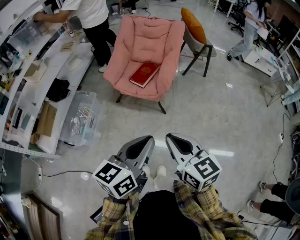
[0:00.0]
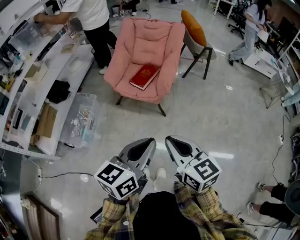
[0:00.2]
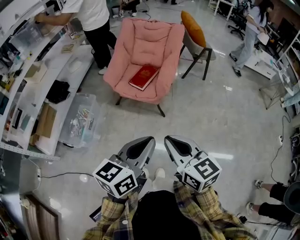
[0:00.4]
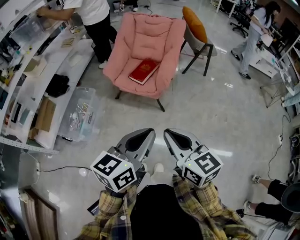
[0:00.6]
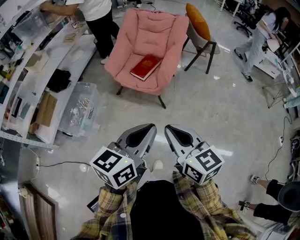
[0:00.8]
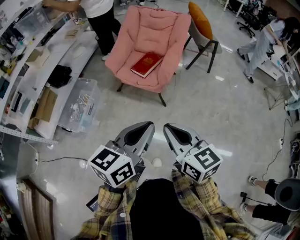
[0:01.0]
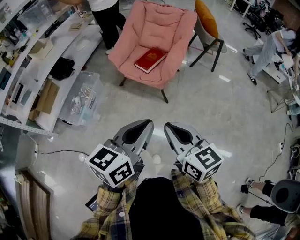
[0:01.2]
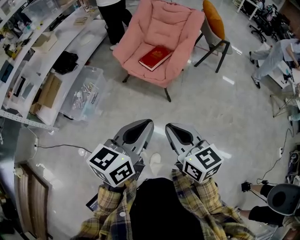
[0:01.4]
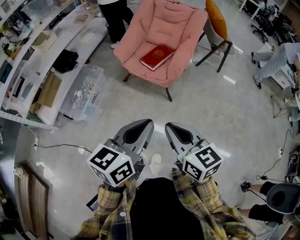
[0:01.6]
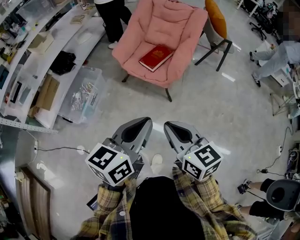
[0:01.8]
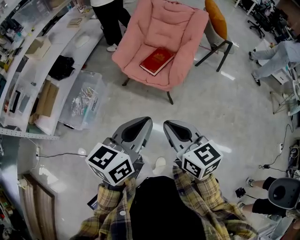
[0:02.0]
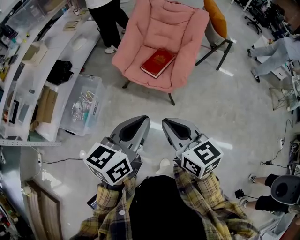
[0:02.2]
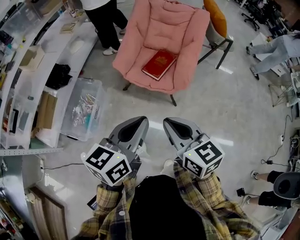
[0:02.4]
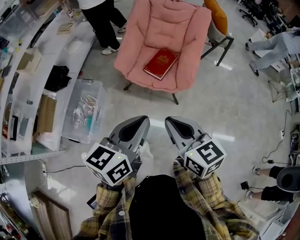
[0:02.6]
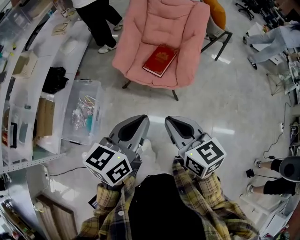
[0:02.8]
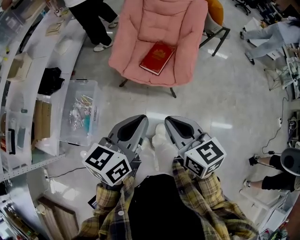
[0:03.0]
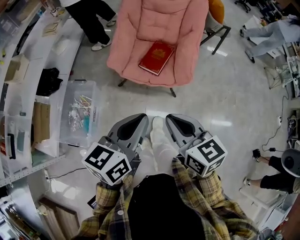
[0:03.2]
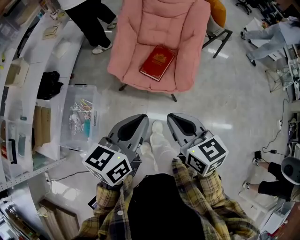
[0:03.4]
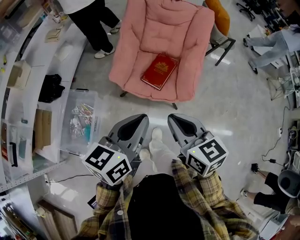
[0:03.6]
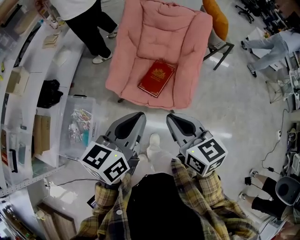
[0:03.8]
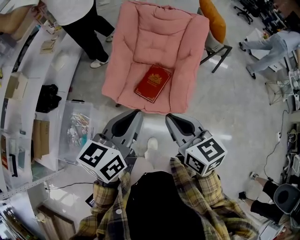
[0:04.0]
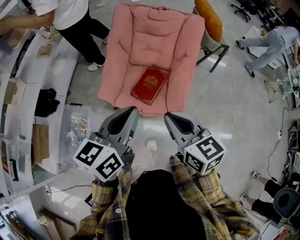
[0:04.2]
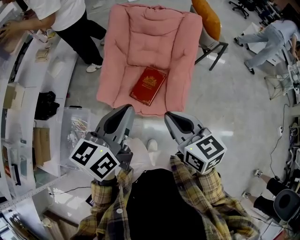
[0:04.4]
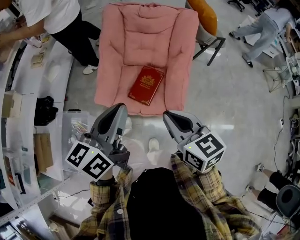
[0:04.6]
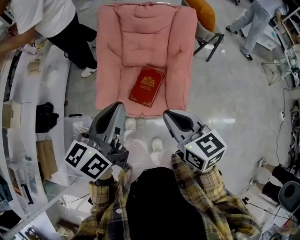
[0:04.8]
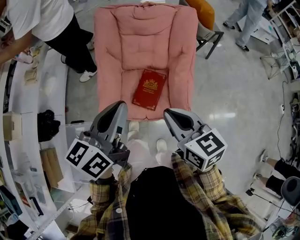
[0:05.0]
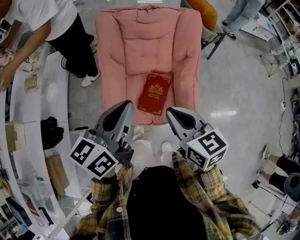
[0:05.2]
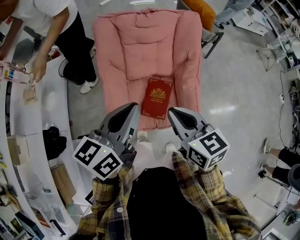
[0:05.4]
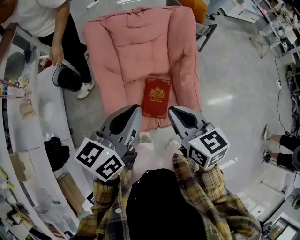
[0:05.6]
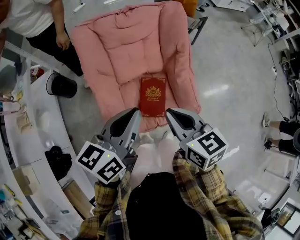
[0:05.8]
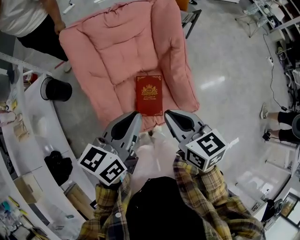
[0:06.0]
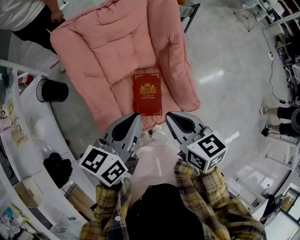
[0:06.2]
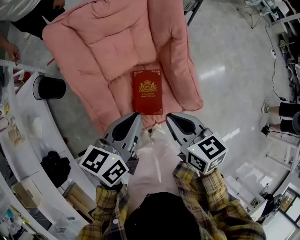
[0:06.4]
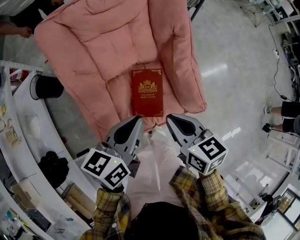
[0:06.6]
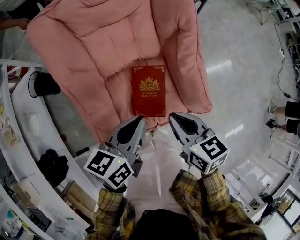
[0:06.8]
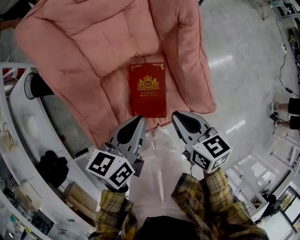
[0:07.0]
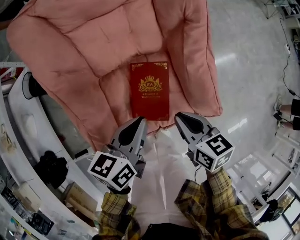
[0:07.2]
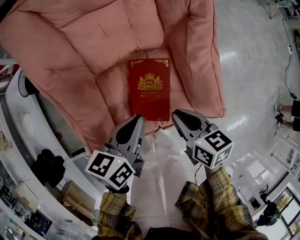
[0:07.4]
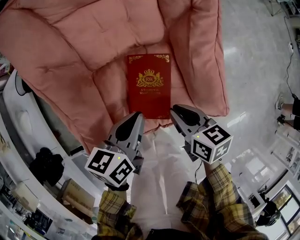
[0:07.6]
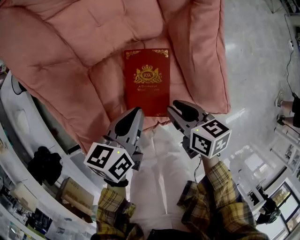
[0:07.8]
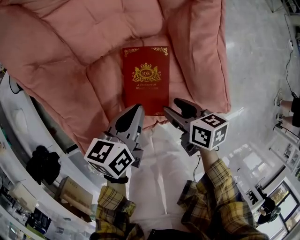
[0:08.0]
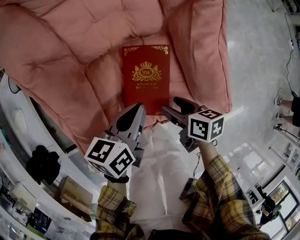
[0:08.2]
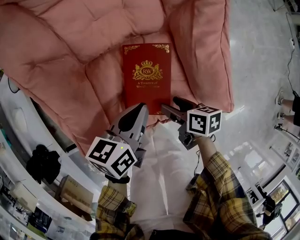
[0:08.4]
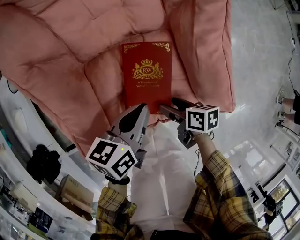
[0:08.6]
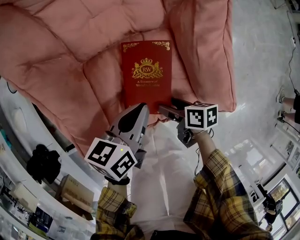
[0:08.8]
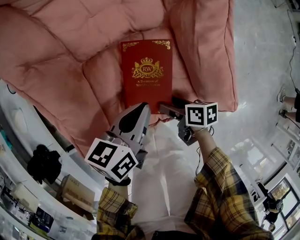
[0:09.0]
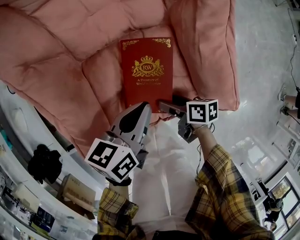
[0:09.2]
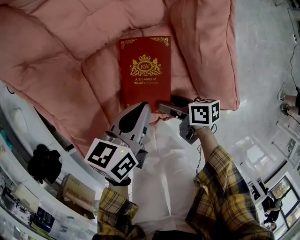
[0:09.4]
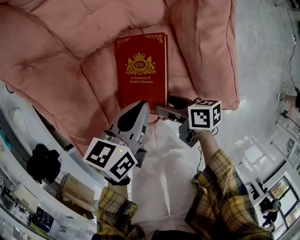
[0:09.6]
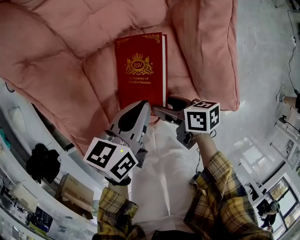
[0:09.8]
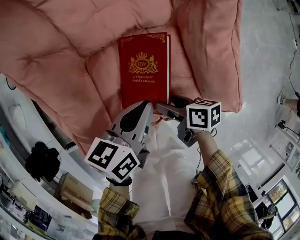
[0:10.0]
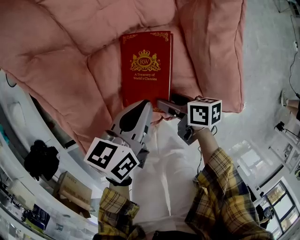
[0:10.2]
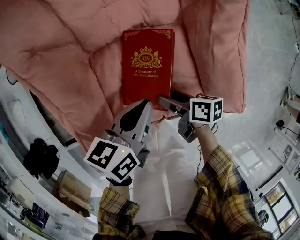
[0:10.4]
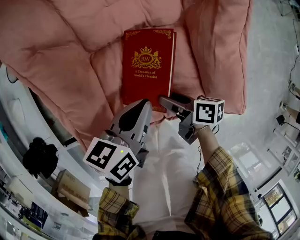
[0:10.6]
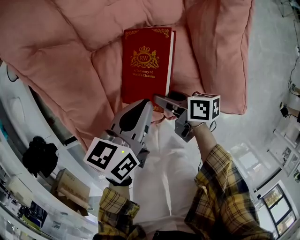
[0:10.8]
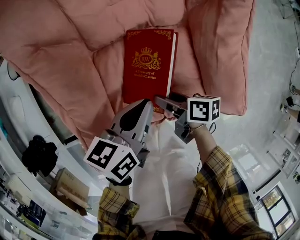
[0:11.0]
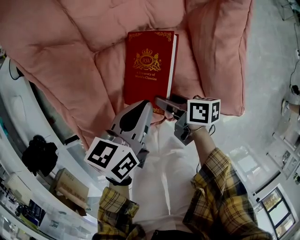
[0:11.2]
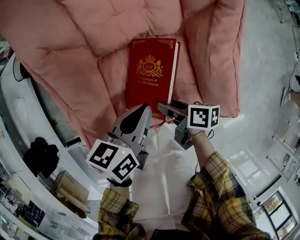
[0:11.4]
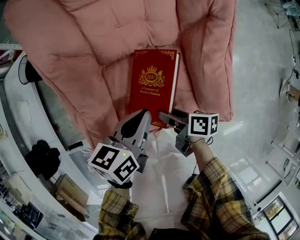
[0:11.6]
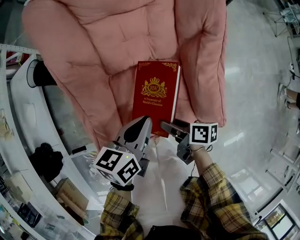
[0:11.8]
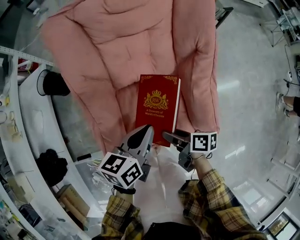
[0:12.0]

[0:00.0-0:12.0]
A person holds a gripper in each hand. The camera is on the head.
0:00.0 to 0:01.6: The grippers move only a little.
0:01.6 to 0:03.0: Both grippers move forward and to the left, approximately 30 cm.
0:03.0 to 0:04.4: The grippers both shift forward by roughly 25 cm.
0:04.4 to 0:06.0: The right gripper shifts by roughly 25 cm, and turns by approximately 30 degrees; the left gripper moves approximately 25 cm, and swivels roughly 30 degrees.
0:06.0 to 0:07.6: Both grippers move downward, some 35 cm. The right gripper rotates approximately 20 degrees.
0:07.6 to 0:09.0: The right gripper shifts approximately 15 cm downward, turns by about 30 degrees, and opens its fingers. Meanwhile the left gripper changes place by approximately 5 cm.
0:09.0 to 0:10.4: There are only small adjustments of the grippers.
0:10.4 to 0:12.0: The grippers both shift upward by about 15 cm.

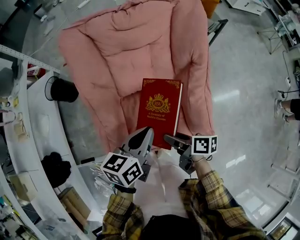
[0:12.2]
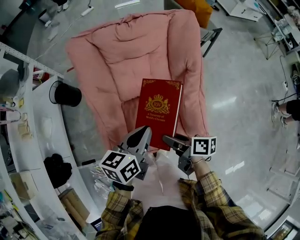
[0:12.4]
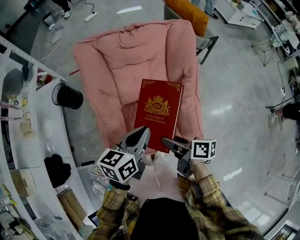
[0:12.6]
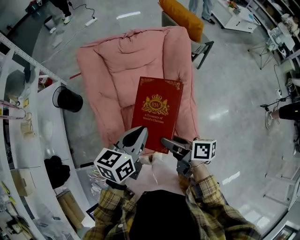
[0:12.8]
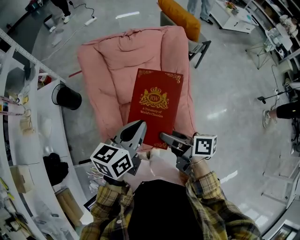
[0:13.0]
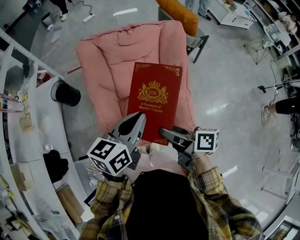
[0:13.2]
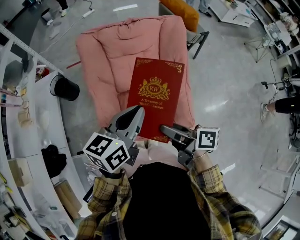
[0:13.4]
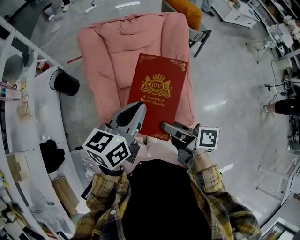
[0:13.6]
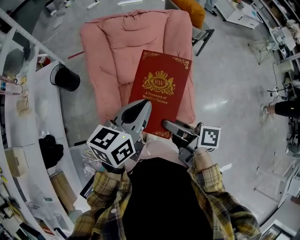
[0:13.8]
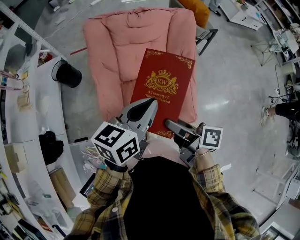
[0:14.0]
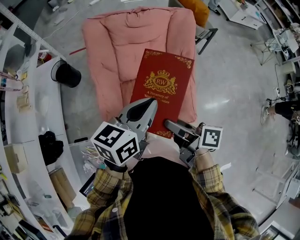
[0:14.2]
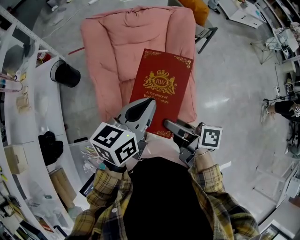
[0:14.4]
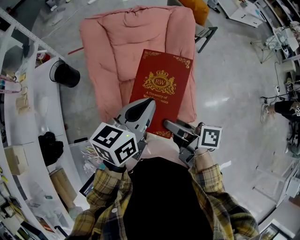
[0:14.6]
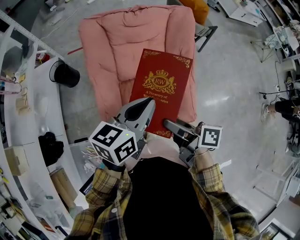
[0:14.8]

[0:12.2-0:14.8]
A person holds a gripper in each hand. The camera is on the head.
0:12.2 to 0:13.4: Both grippers travel together upward, roughly 25 cm.
0:13.4 to 0:14.8: The grippers make only small movements.

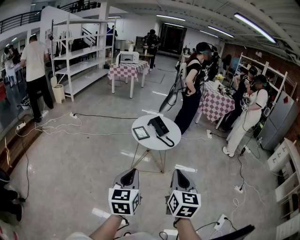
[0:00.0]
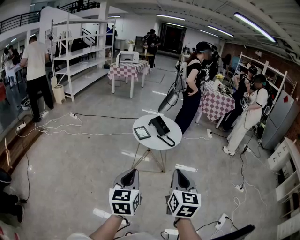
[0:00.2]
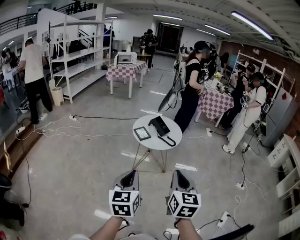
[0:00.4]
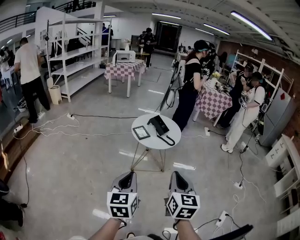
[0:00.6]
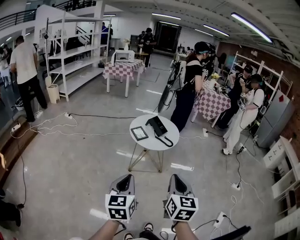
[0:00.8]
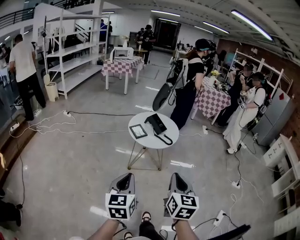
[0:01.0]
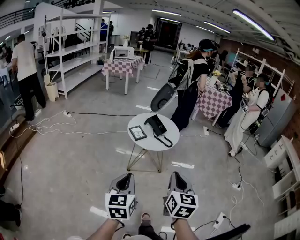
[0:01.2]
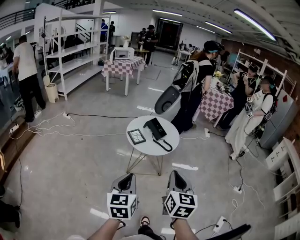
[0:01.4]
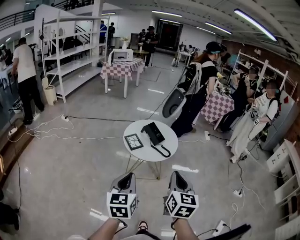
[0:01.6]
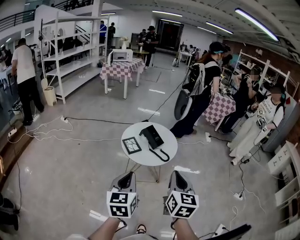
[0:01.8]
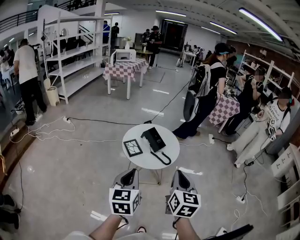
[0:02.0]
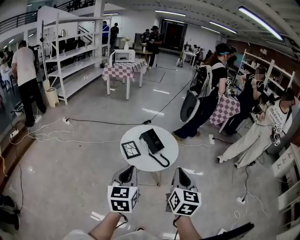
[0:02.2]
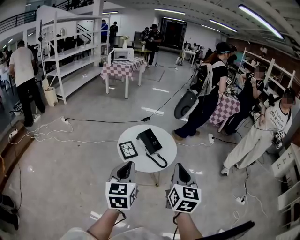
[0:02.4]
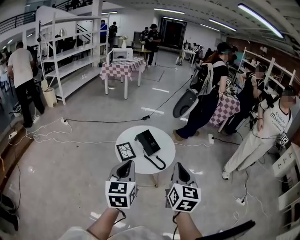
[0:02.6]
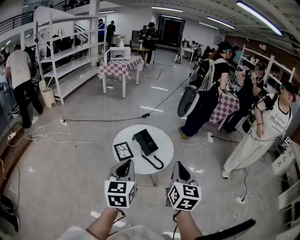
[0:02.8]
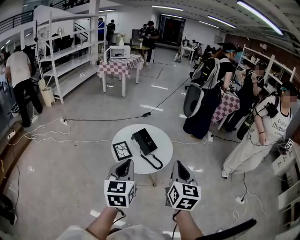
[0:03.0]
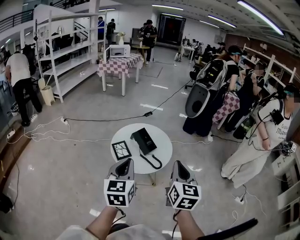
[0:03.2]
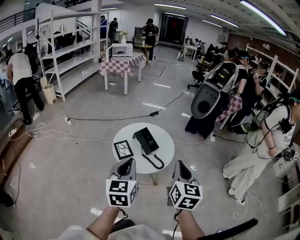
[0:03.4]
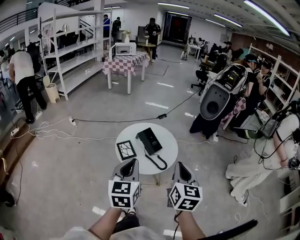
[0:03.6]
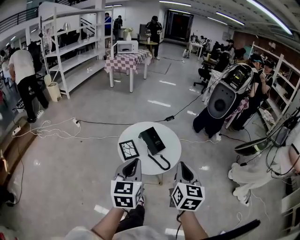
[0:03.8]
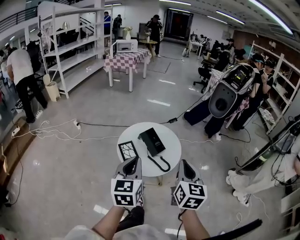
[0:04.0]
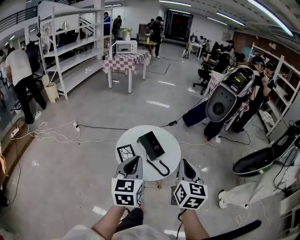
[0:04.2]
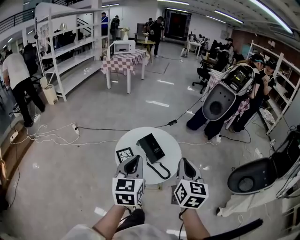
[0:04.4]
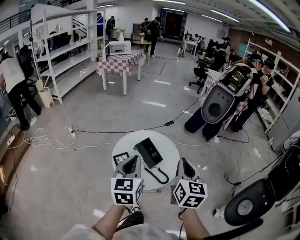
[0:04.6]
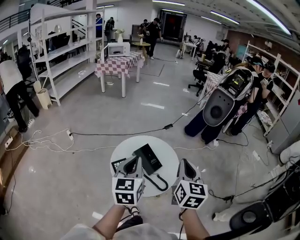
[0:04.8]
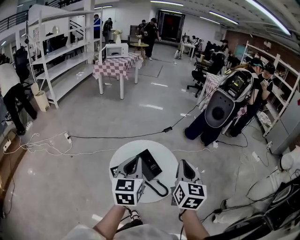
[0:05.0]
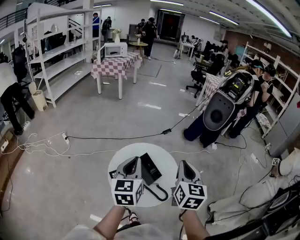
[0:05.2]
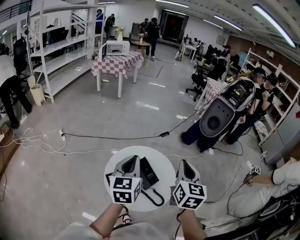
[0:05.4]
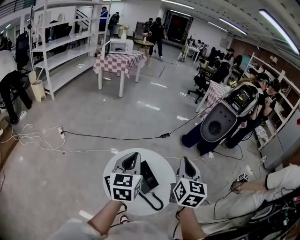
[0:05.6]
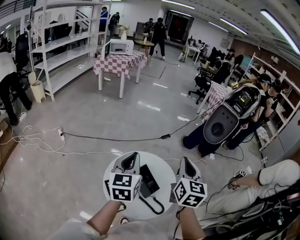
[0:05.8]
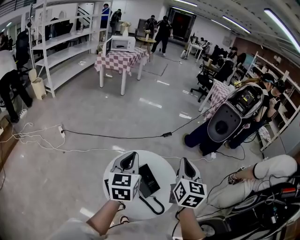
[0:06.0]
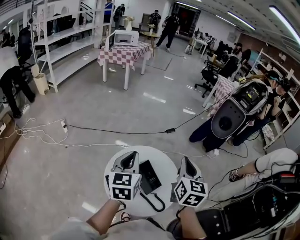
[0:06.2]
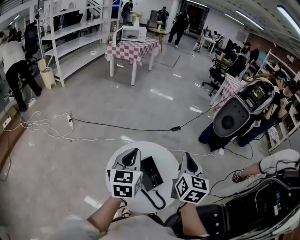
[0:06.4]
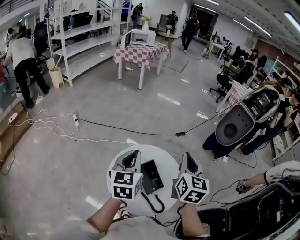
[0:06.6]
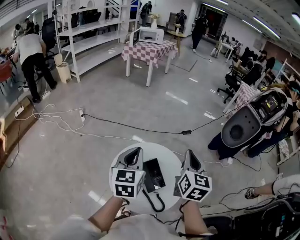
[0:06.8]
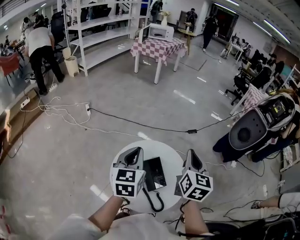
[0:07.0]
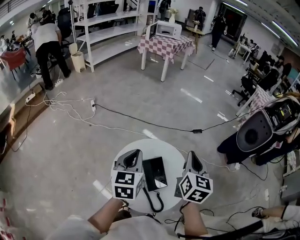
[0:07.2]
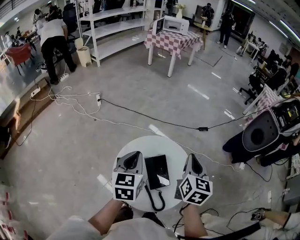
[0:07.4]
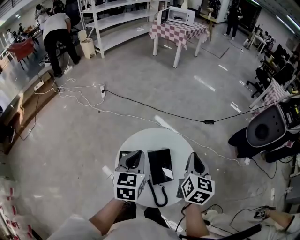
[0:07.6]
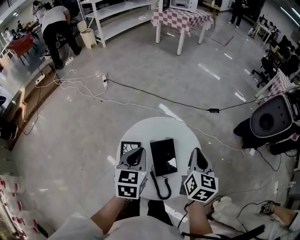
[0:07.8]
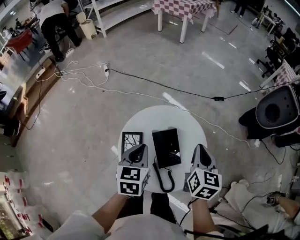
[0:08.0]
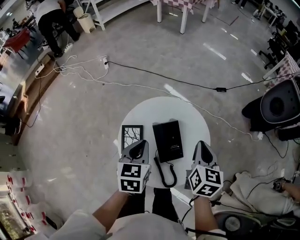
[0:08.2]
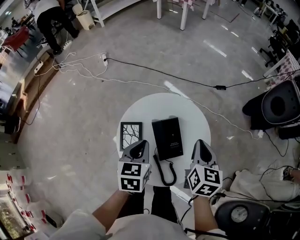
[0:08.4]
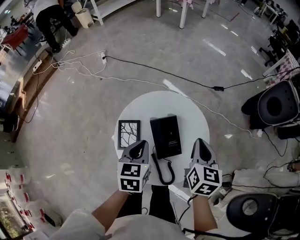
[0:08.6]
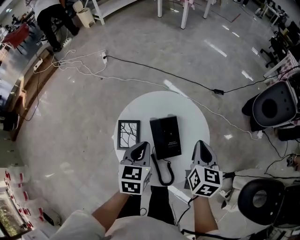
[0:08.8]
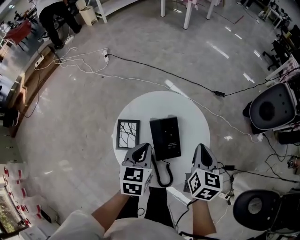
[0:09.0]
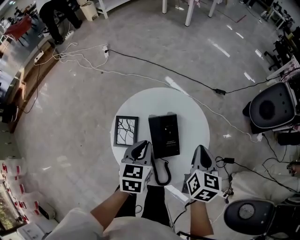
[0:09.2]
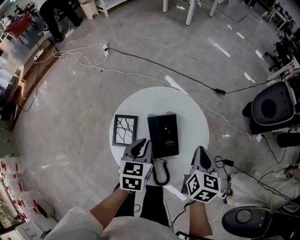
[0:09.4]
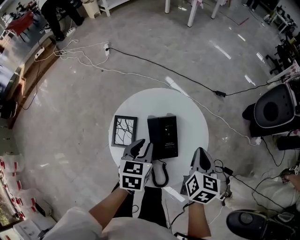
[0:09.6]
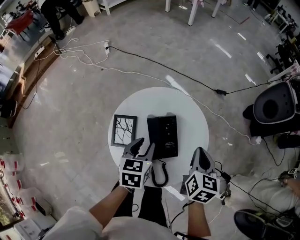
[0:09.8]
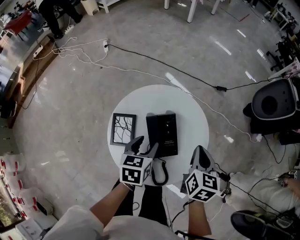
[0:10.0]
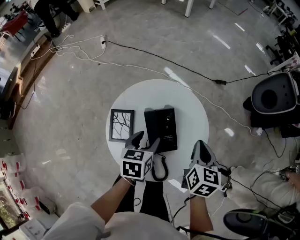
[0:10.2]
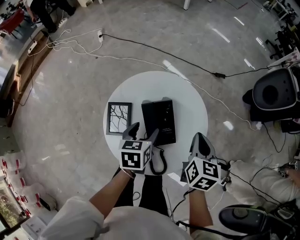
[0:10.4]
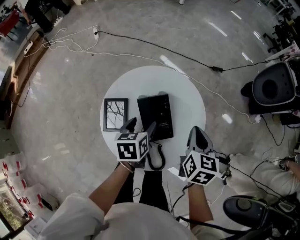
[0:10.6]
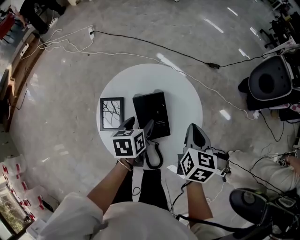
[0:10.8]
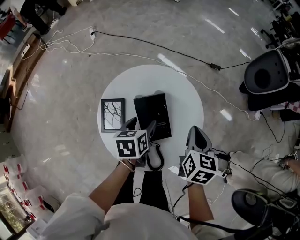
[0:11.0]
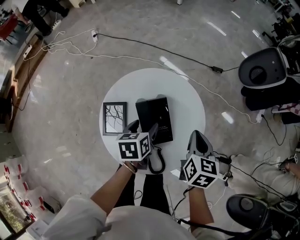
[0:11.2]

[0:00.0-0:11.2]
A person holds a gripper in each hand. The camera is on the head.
0:00.0 to 0:01.6: Both grippers move forward, about 10 cm.
0:01.6 to 0:03.2: The right gripper shifts approximately 20 cm forward and to the right, while the left gripper moves forward, roughly 20 cm.
0:03.2 to 0:04.8: The grippers both shift forward by roughly 15 cm.
0:04.8 to 0:06.4: Both grippers move forward, roughly 15 cm.
0:06.4 to 0:08.0: The left gripper travels downward and backward by roughly 15 cm, and rotates roughly 30 degrees; the right gripper moves downward, about 15 cm, and changes its angle by about 20 degrees.
0:08.0 to 0:09.6: The two grippers go about 10 cm downward.
0:09.6 to 0:11.2: The left gripper heads downward, covering about 5 cm, and opens its fingers.
